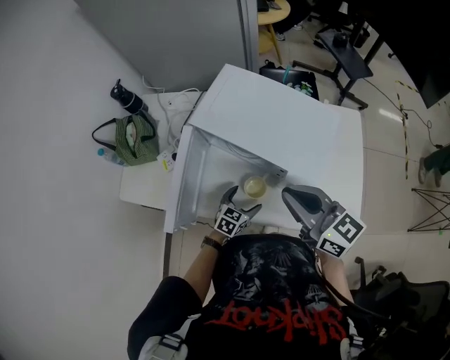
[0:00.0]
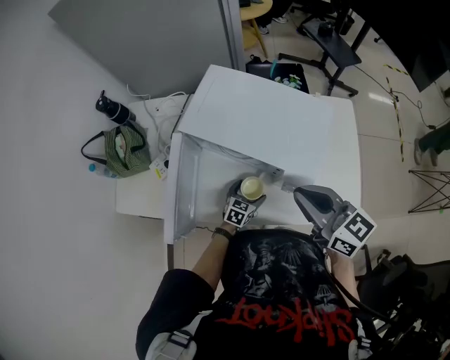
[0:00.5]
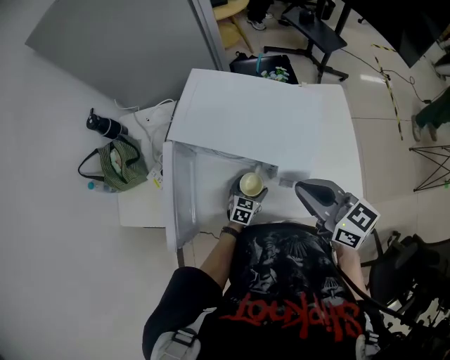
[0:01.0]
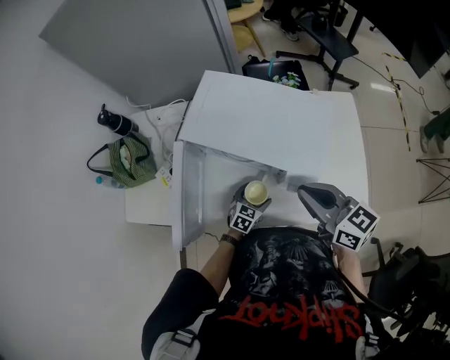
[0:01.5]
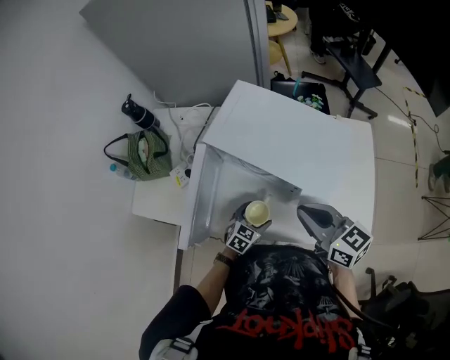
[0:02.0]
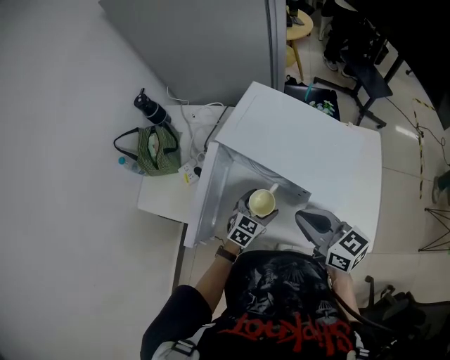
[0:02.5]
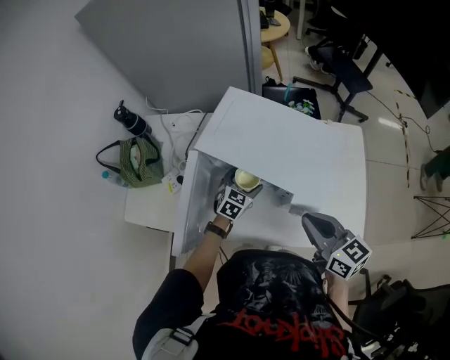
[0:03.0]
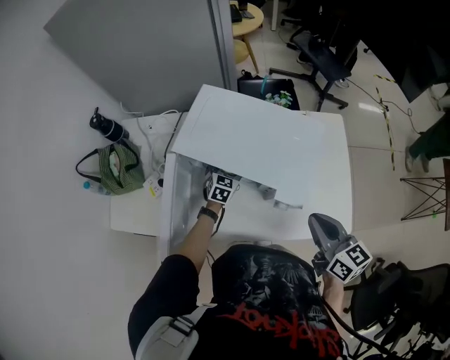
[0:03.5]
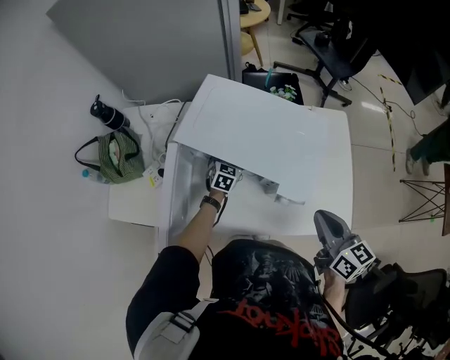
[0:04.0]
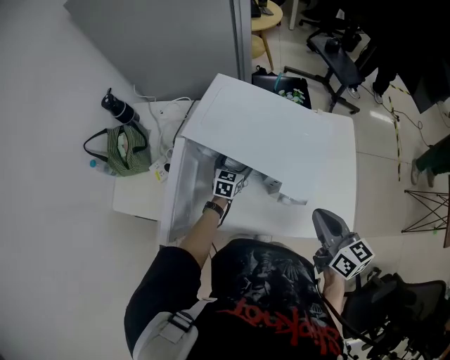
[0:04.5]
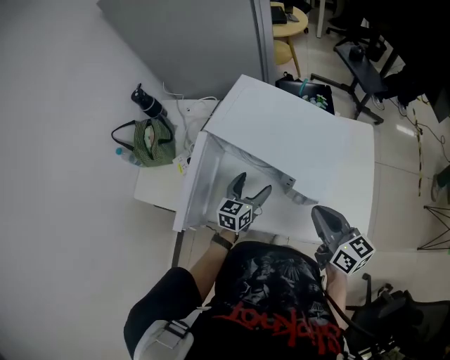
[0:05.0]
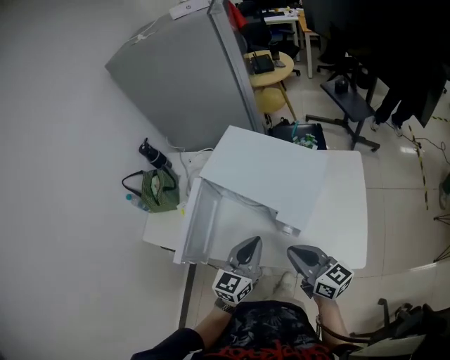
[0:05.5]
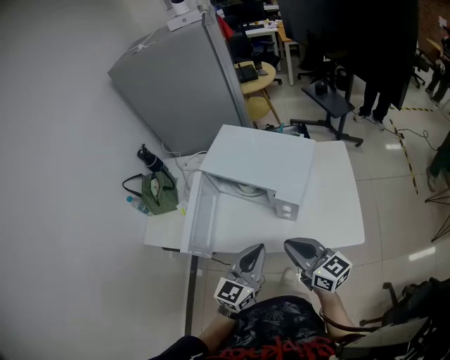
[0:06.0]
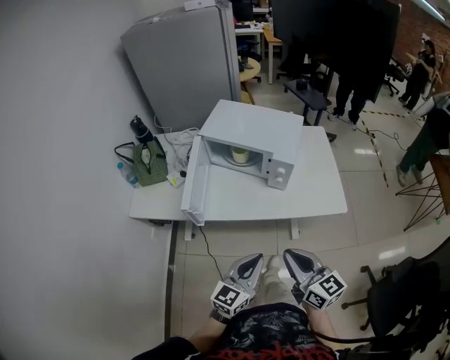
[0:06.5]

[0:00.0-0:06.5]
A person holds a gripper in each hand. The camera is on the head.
0:02.0 to 0:04.5: The right gripper travels to the right by approximately 10 cm, and swivels roughly 20 degrees. The left gripper moves forward, approximately 20 cm.
0:04.5 to 0:06.5: The left gripper is displaced backward and upward by approximately 60 cm, turns by about 30 degrees, and closes, while the right gripper heads backward and to the left, covering approximately 35 cm.

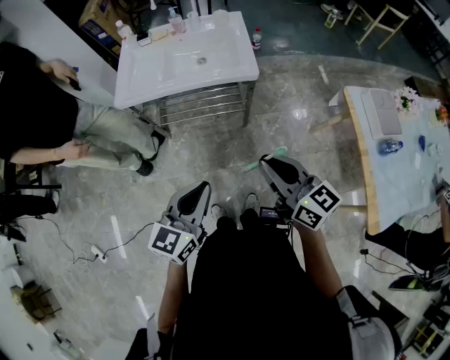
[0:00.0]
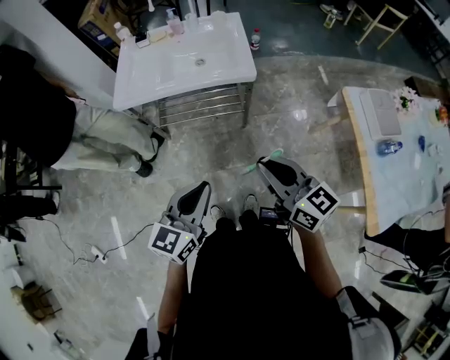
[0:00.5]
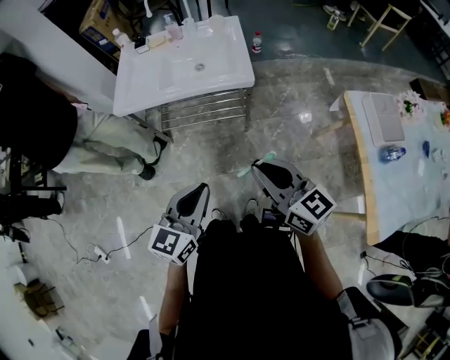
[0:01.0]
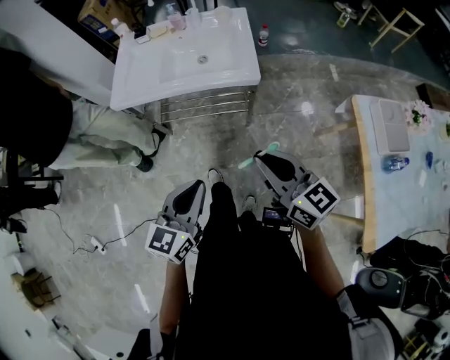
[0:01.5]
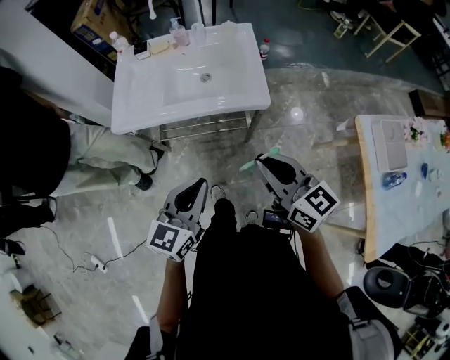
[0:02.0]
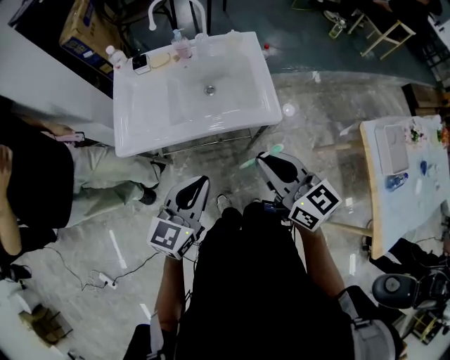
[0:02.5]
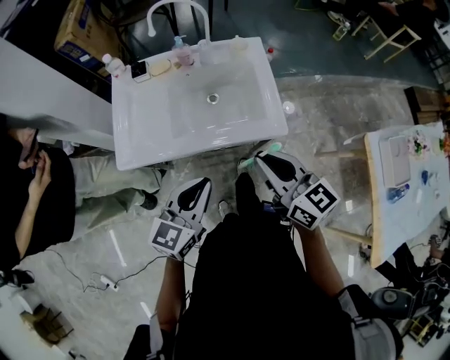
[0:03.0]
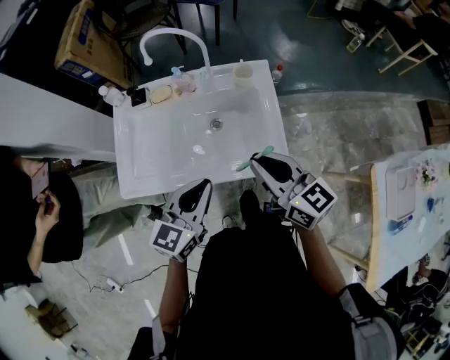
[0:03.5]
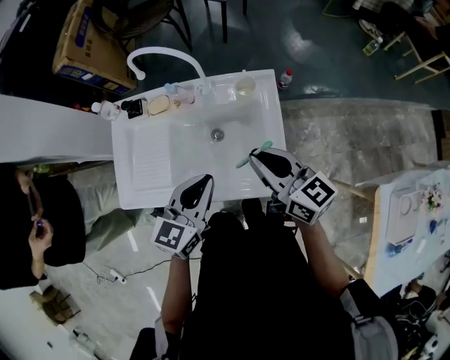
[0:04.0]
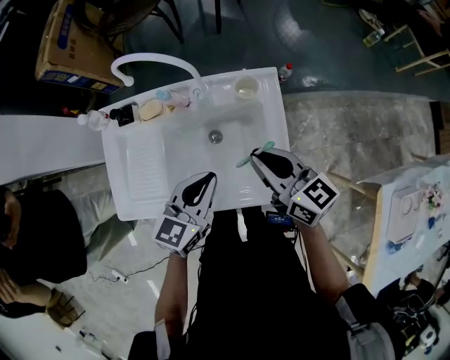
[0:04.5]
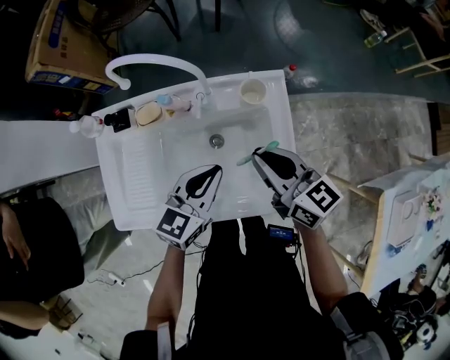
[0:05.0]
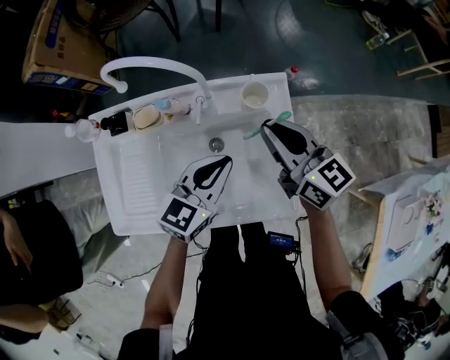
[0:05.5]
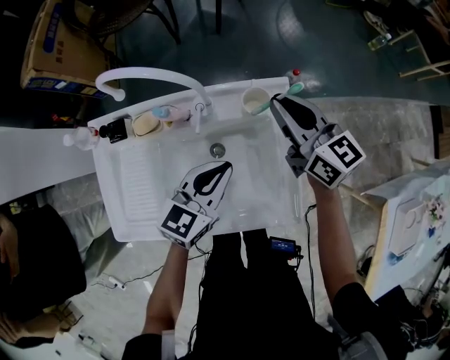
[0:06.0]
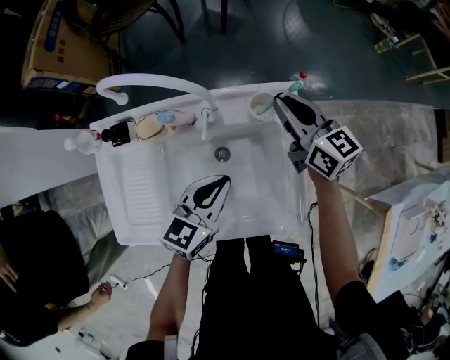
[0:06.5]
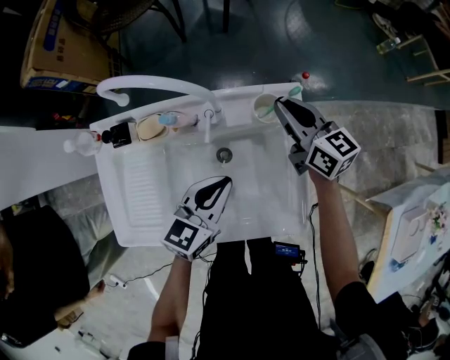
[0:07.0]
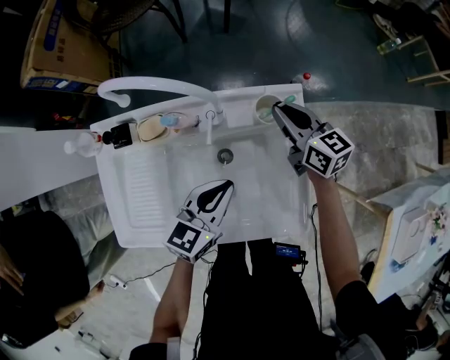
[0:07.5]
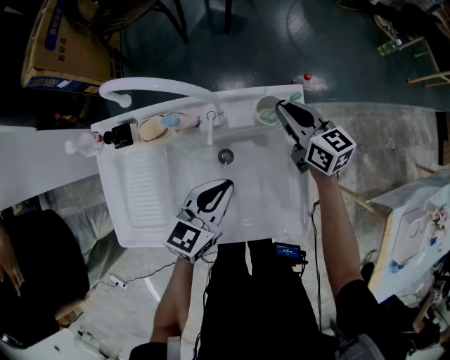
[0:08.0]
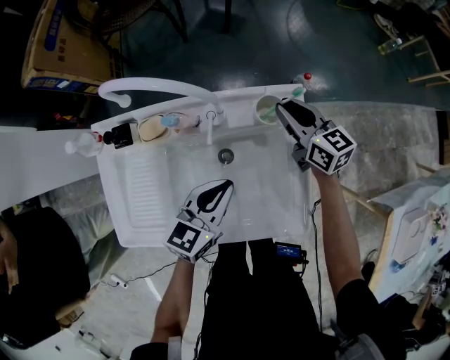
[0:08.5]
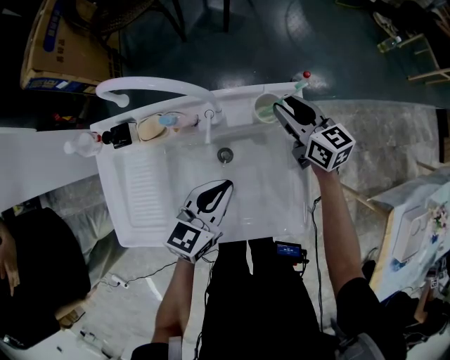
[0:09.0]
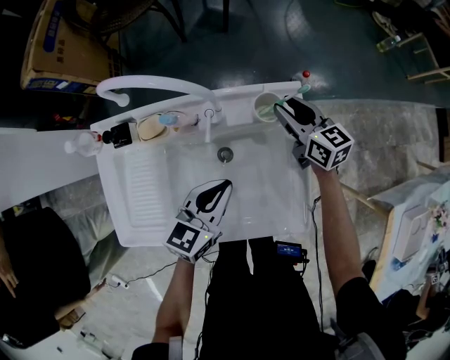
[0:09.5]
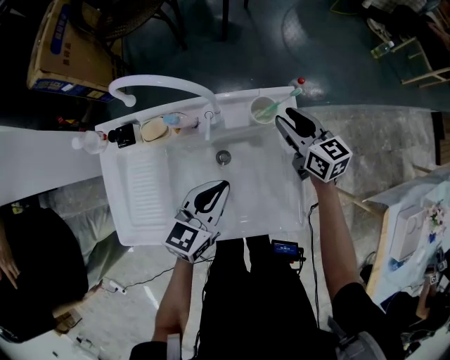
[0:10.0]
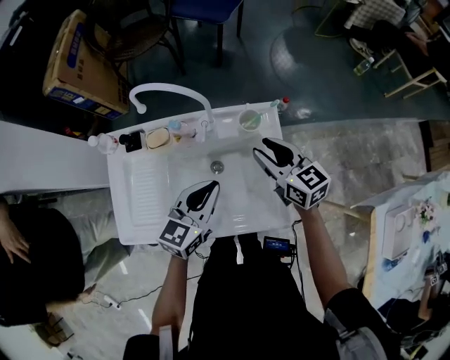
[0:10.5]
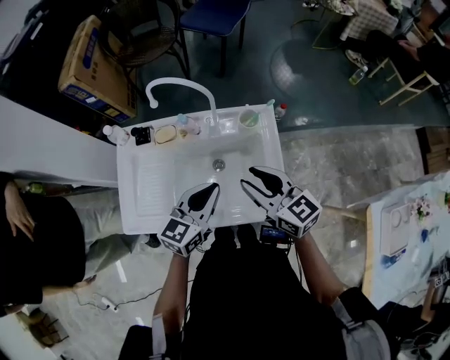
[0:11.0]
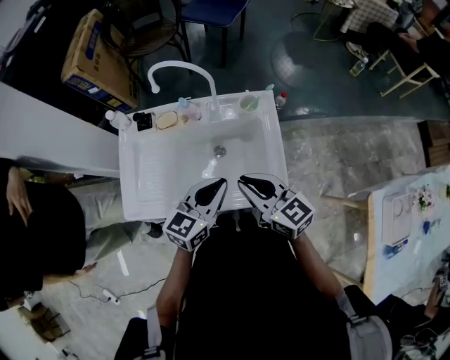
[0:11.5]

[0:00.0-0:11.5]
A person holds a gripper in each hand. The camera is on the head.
0:00.0 to 0:02.0: Both grippers travel together forward, about 15 cm.
0:02.0 to 0:04.0: The grippers both shift forward by roughly 40 cm.
0:04.0 to 0:06.0: The left gripper travels forward and downward by some 15 cm. The right gripper heads forward, covering roughly 20 cm.
0:06.0 to 0:07.5: The right gripper heads downward, covering roughly 10 cm.
0:07.5 to 0:09.5: The right gripper opens its fingers.
0:09.5 to 0:11.5: The left gripper moves upward and backward, some 15 cm. Meanwhile the right gripper moves backward and upward, some 35 cm, and closes.

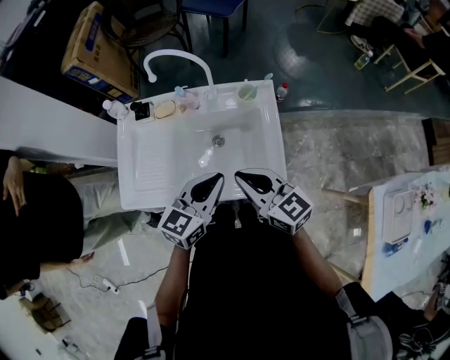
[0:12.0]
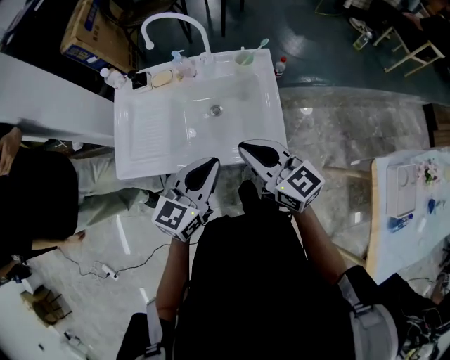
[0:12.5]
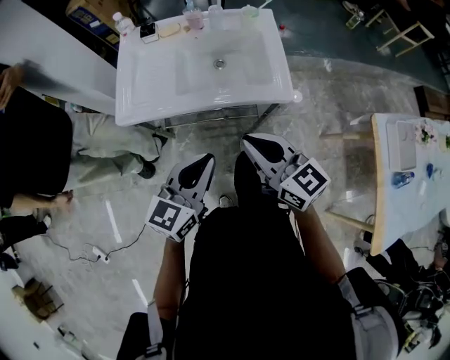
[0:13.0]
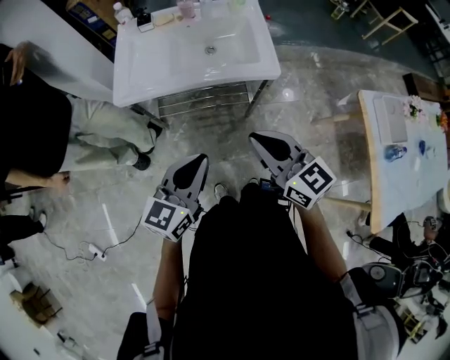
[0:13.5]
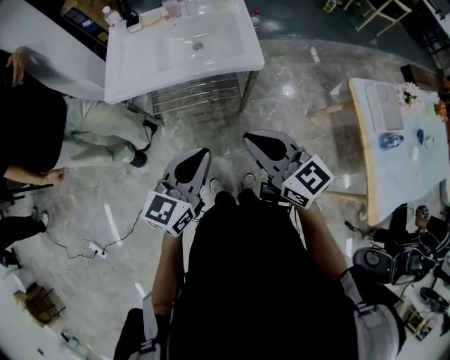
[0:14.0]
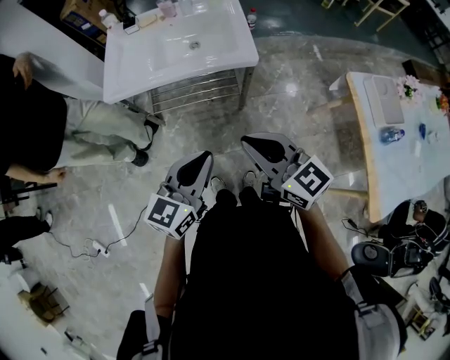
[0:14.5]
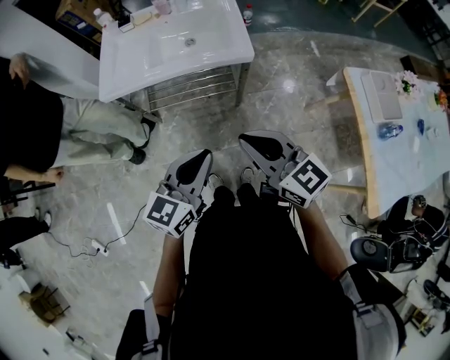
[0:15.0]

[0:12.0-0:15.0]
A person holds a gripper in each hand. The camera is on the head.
0:12.0 to 0:13.5: Both grippers move backward, approximately 35 cm.
0:13.5 to 0:15.0: The right gripper heads backward and to the right, covering approximately 10 cm; the left gripper moves to the right and backward, roughly 10 cm.

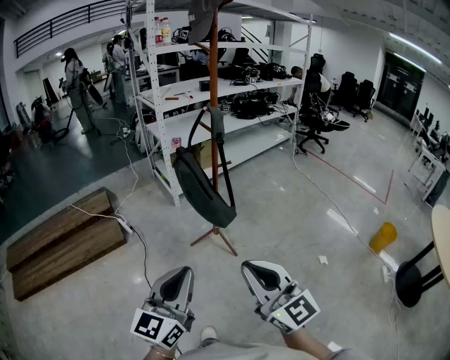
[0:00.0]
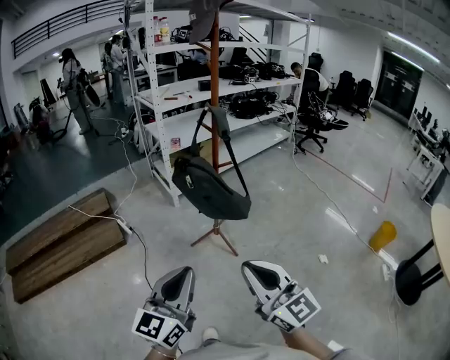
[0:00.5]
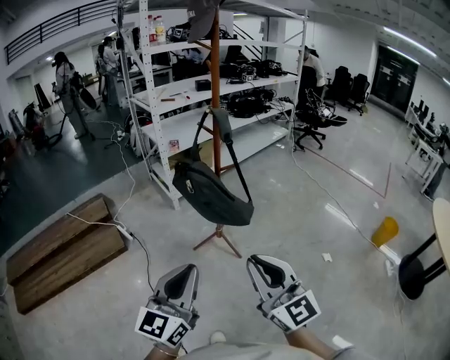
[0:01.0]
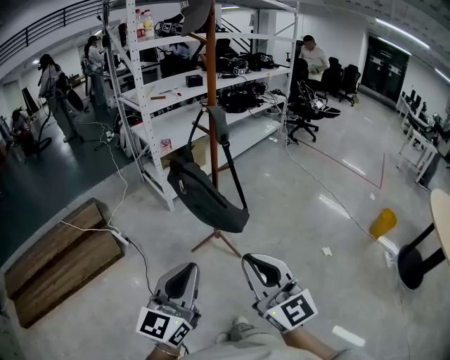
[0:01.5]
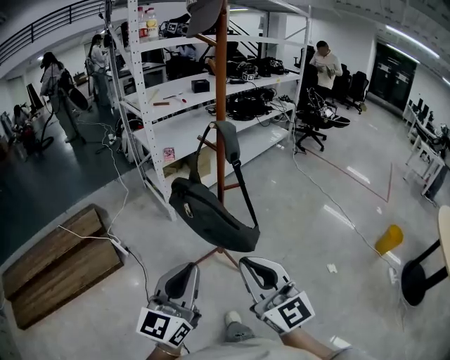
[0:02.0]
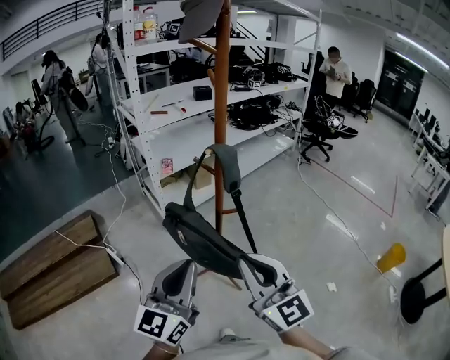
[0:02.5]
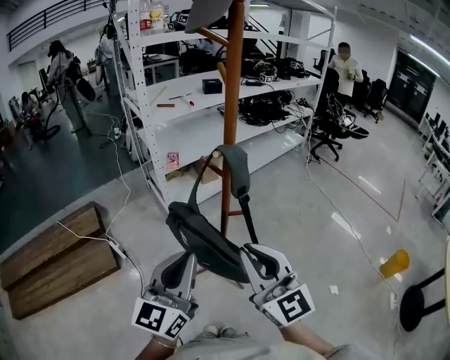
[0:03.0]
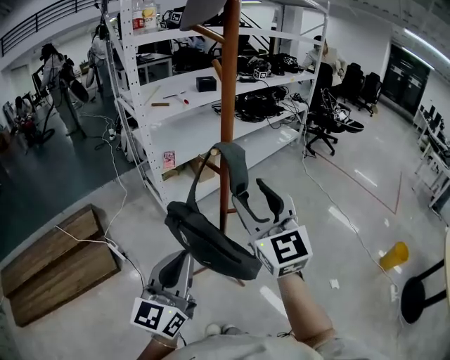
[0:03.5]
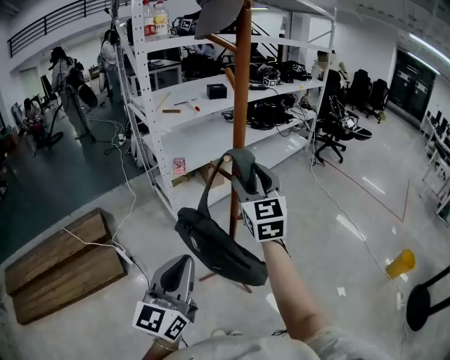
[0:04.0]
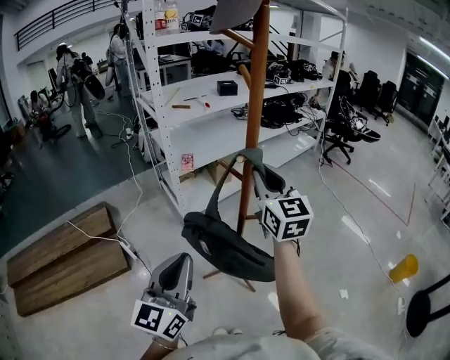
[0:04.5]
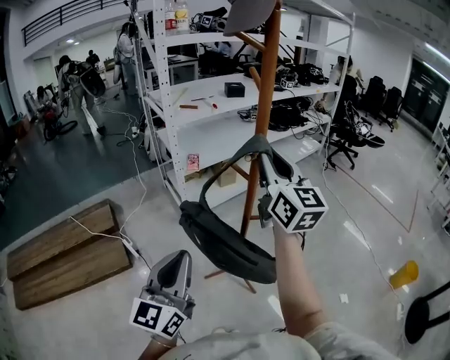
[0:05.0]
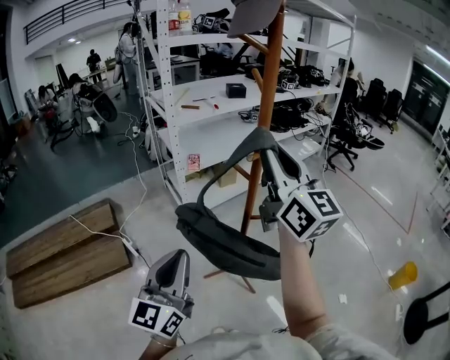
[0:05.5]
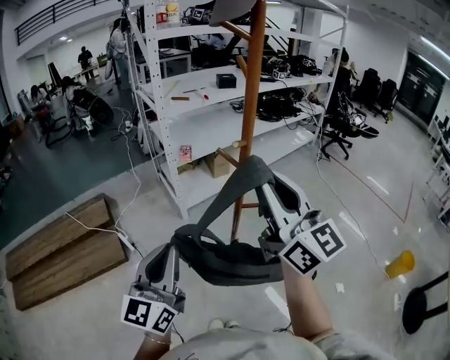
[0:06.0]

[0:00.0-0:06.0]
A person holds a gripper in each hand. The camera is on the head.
0:00.0 to 0:02.0: Both grippers travel together forward, approximately 20 cm.
0:02.0 to 0:04.0: The left gripper shifts about 15 cm forward. The right gripper moves forward, approximately 40 cm, and opens.
0:04.0 to 0:06.0: The right gripper shifts some 15 cm backward and upward, changes its angle by about 40 degrees, and closes its fingers.
